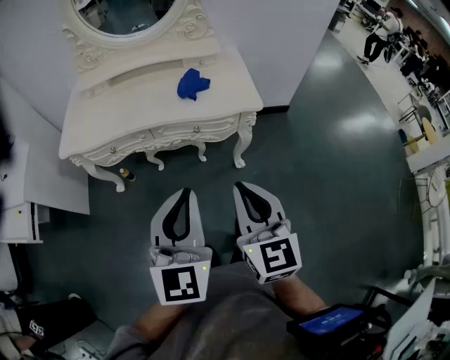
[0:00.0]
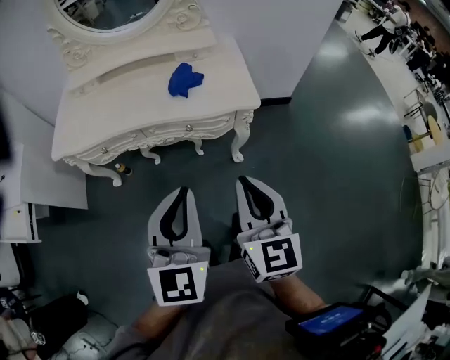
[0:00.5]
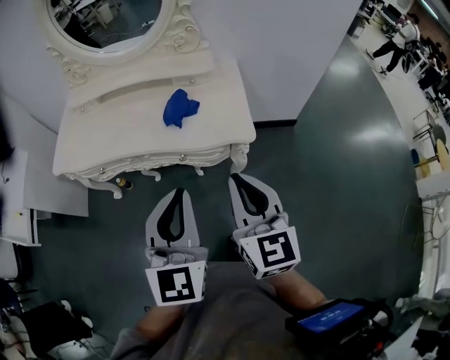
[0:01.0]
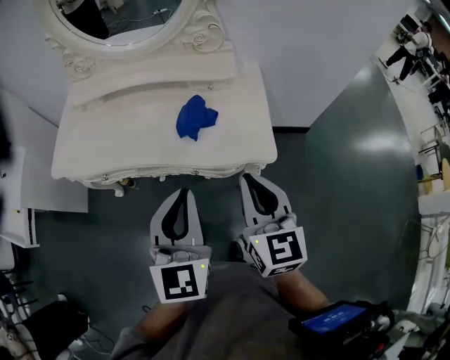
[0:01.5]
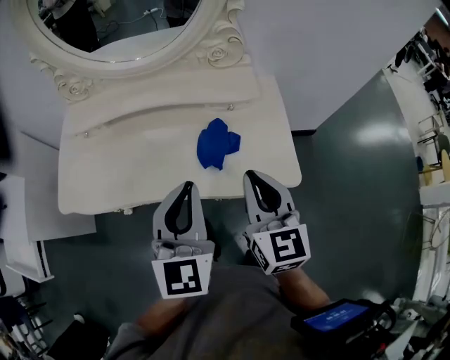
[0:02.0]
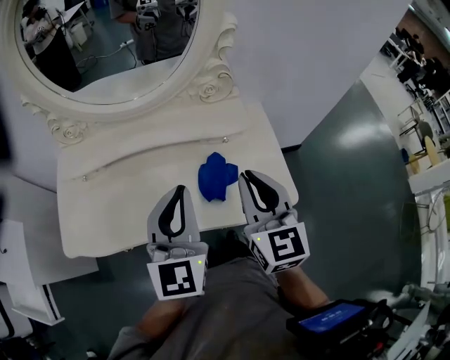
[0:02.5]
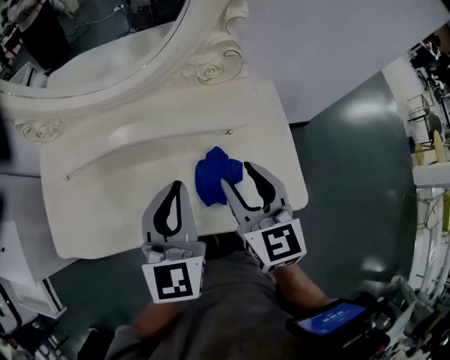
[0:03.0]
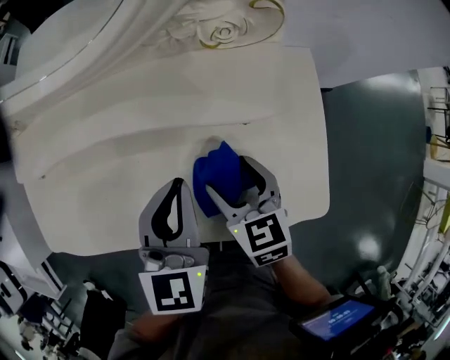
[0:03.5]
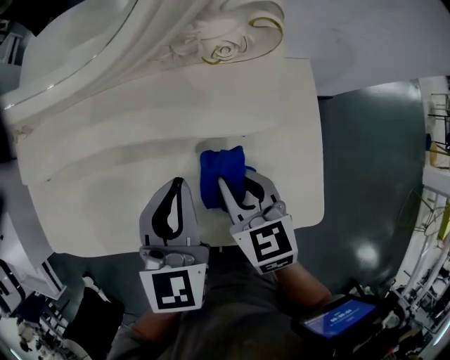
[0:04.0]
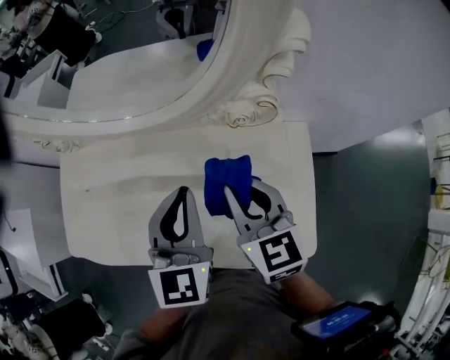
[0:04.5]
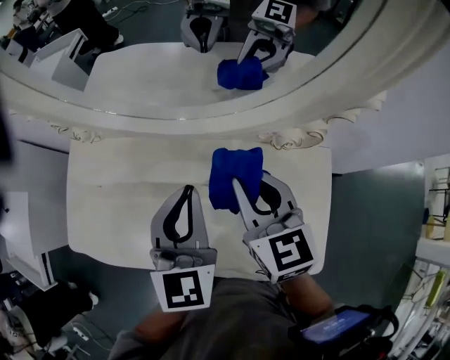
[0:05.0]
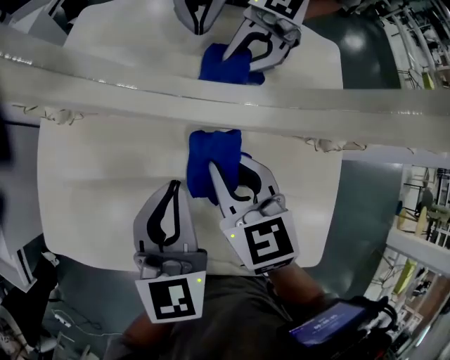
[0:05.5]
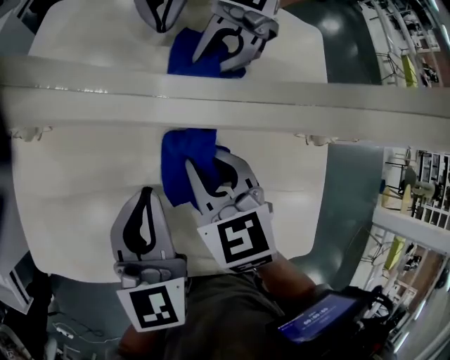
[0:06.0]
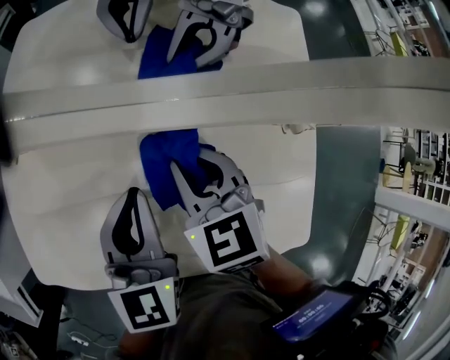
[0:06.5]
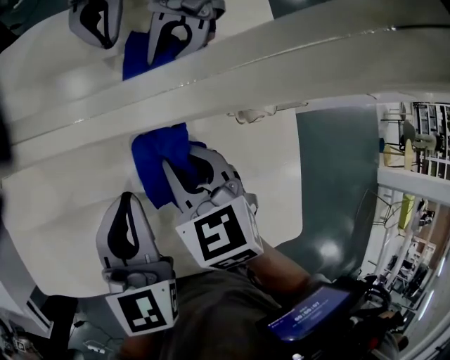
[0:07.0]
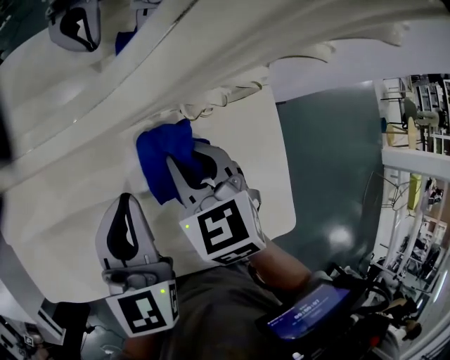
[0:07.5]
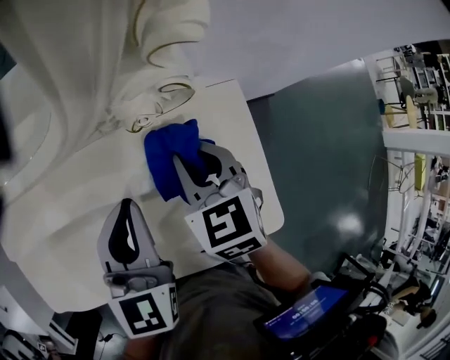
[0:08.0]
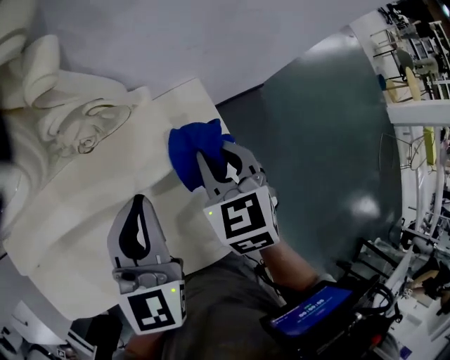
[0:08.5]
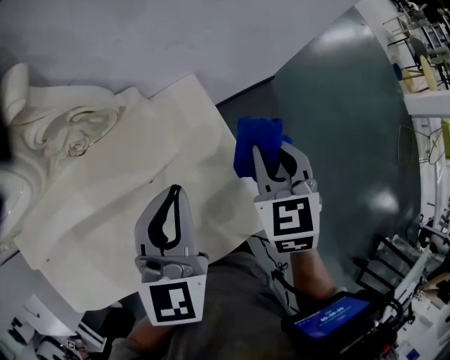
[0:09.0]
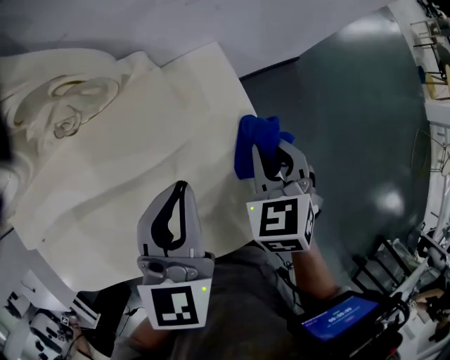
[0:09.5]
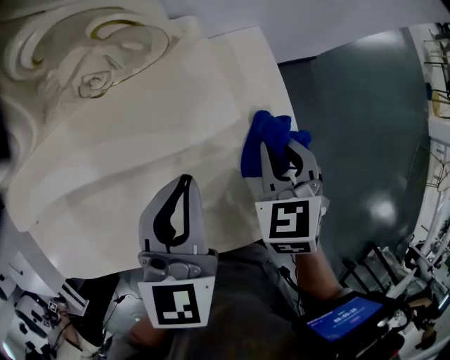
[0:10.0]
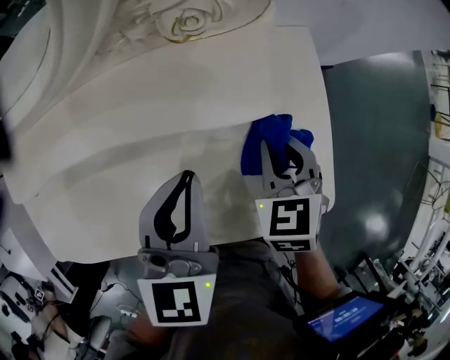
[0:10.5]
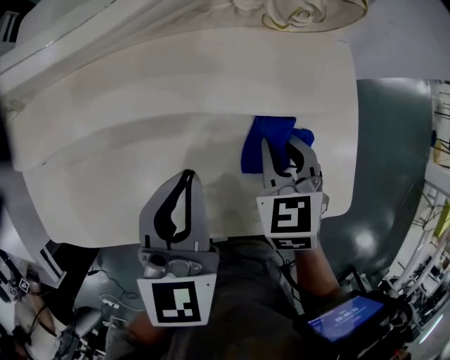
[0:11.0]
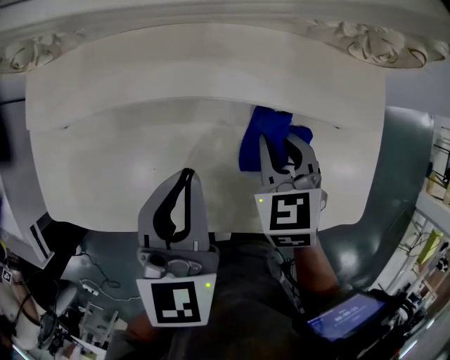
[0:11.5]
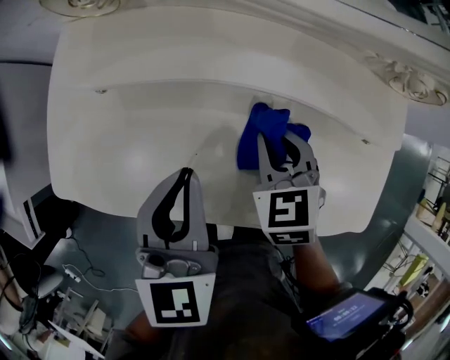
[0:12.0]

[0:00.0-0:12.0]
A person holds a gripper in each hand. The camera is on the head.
0:00.0 to 0:02.0: Both grippers travel together forward, approximately 40 cm.
0:02.0 to 0:04.0: The grippers both shift forward and downward by roughly 25 cm. The right gripper changes its angle by approximately 30 degrees, and opens and closes again.
0:04.0 to 0:06.0: The left gripper heads to the left and forward, covering approximately 20 cm, while the right gripper travels forward and to the left by approximately 25 cm, and swivels roughly 20 degrees.
0:06.0 to 0:08.0: Both grippers travel together to the right, some 25 cm. The left gripper swivels about 20 degrees; the right gripper rotates roughly 20 degrees.
0:08.0 to 0:10.0: The two grippers go roughly 15 cm to the right and downward.
0:10.0 to 0:12.0: The pair of grippers is taken some 40 cm. The right gripper swivels about 30 degrees. Meanwhile the left gripper swivels roughly 30 degrees.

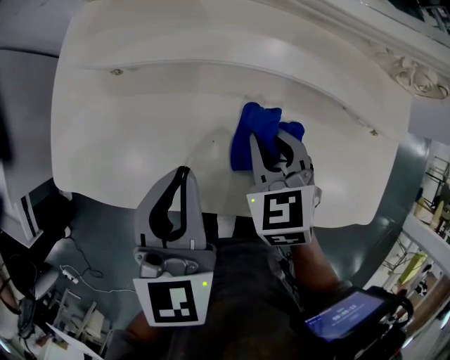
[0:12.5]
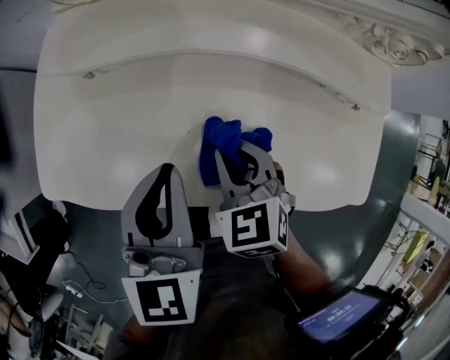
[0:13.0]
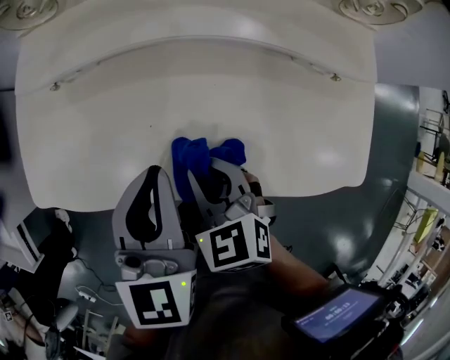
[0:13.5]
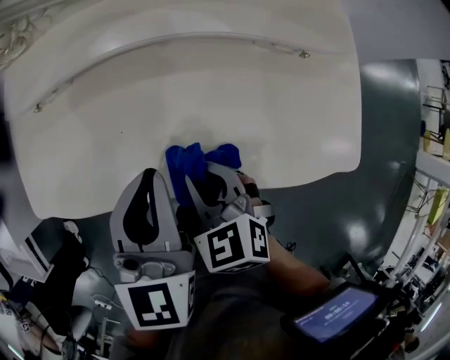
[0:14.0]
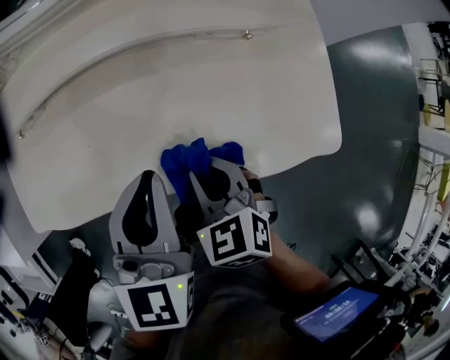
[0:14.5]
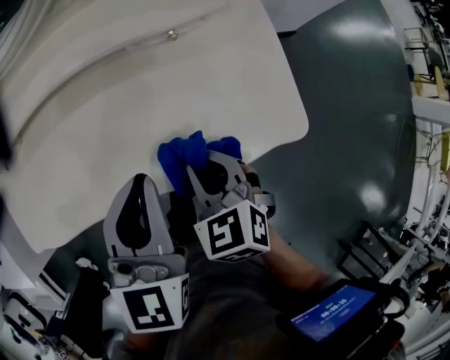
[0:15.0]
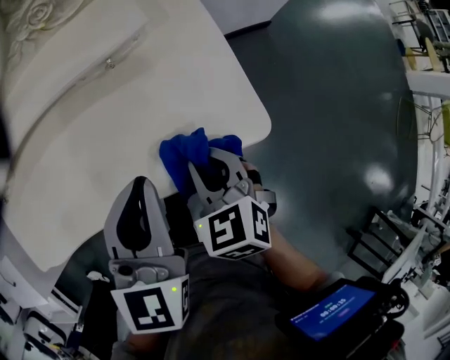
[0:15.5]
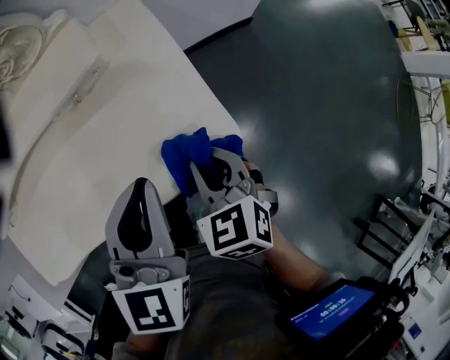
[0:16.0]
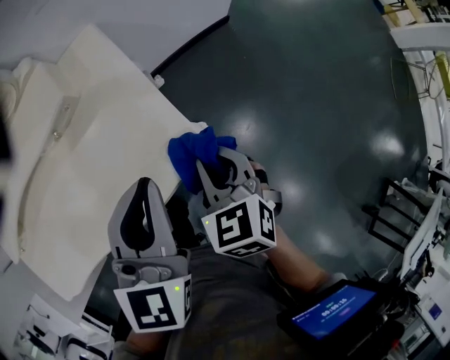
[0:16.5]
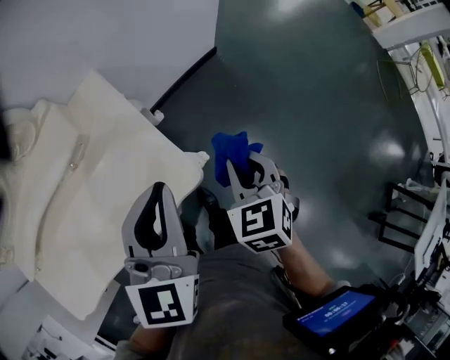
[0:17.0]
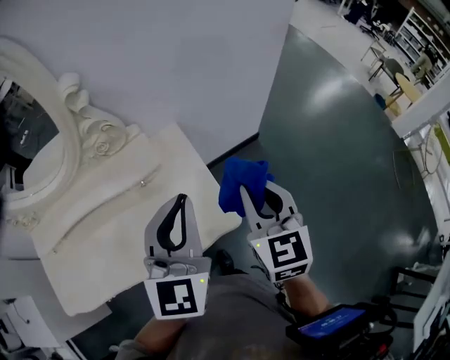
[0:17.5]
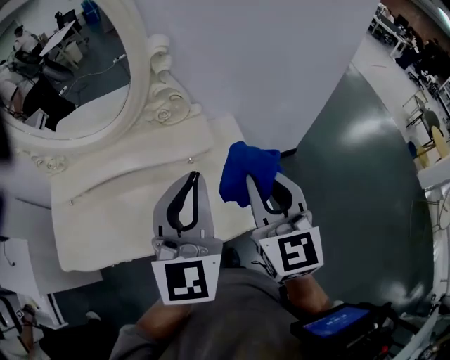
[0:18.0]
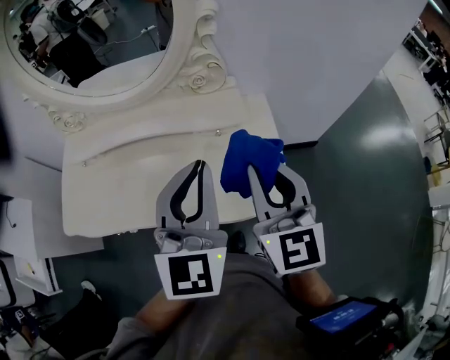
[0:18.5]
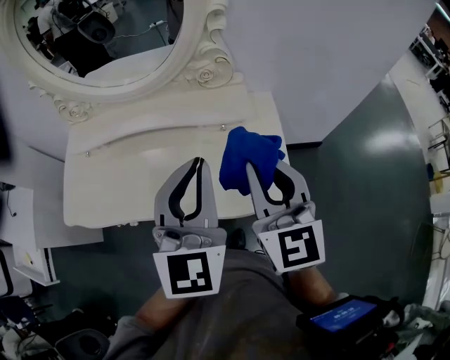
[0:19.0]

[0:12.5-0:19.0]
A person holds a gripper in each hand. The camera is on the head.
0:12.5 to 0:14.5: The left gripper goes about 20 cm to the right. The right gripper shifts approximately 20 cm backward and to the right.
0:14.5 to 0:17.0: The right gripper ends up some 50 cm from where it was, and swivels some 40 degrees; the left gripper moves approximately 40 cm, and rotates roughly 30 degrees.
0:17.0 to 0:19.0: The left gripper changes place by some 30 cm, and changes its angle by some 40 degrees. The right gripper shifts by approximately 35 cm, and tilts its fingers approximately 40 degrees upward.

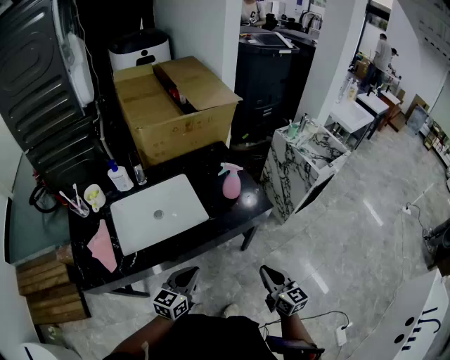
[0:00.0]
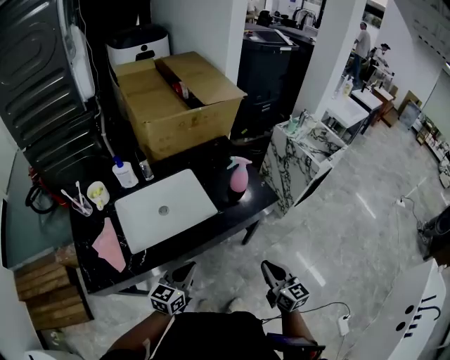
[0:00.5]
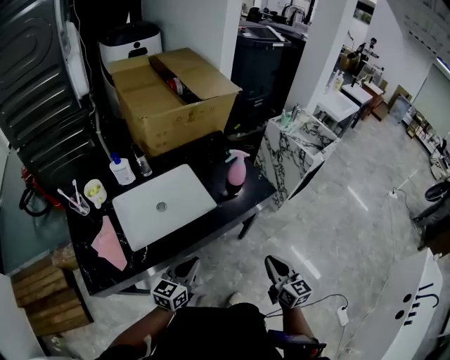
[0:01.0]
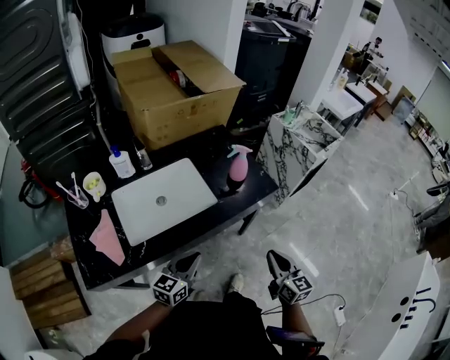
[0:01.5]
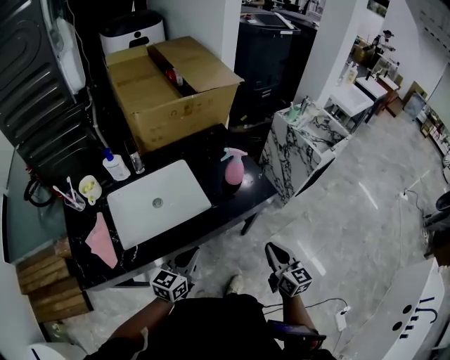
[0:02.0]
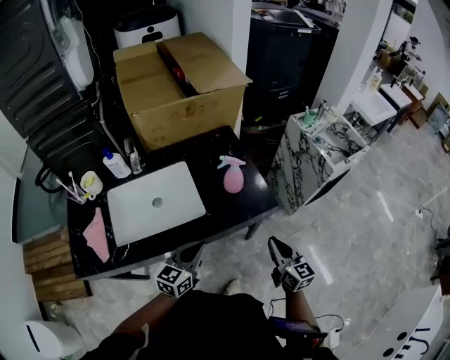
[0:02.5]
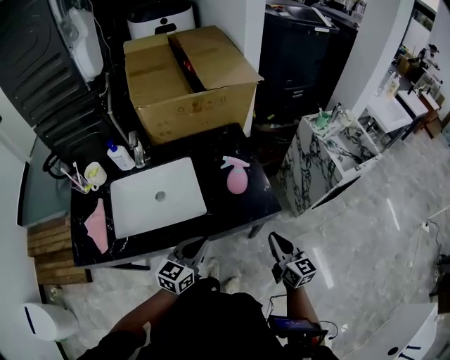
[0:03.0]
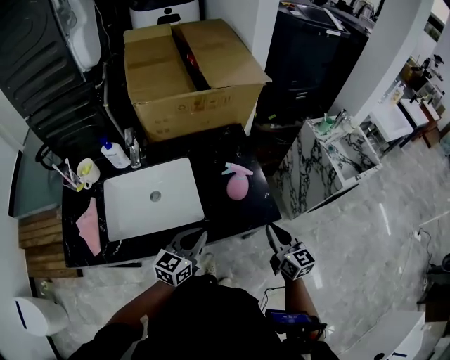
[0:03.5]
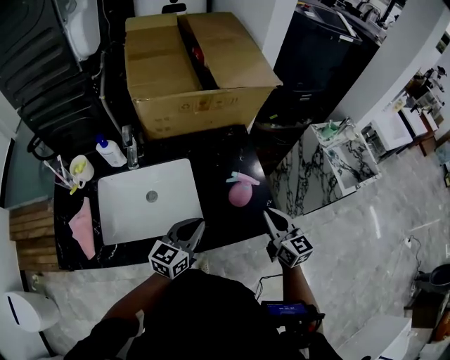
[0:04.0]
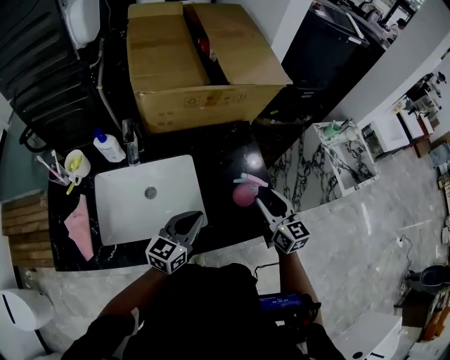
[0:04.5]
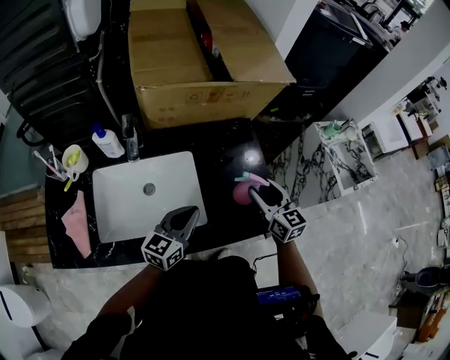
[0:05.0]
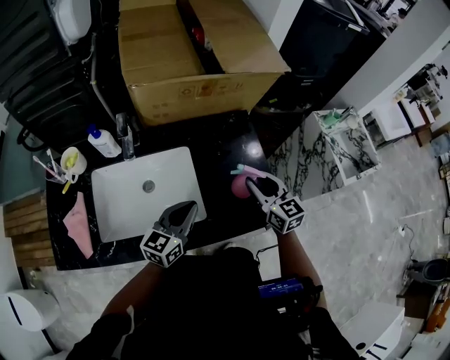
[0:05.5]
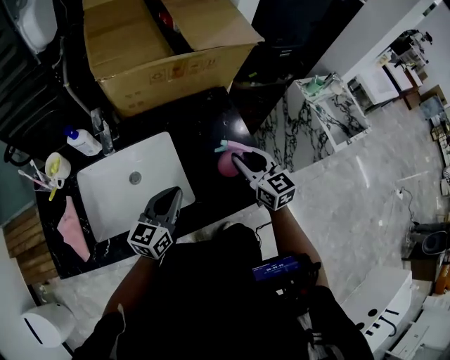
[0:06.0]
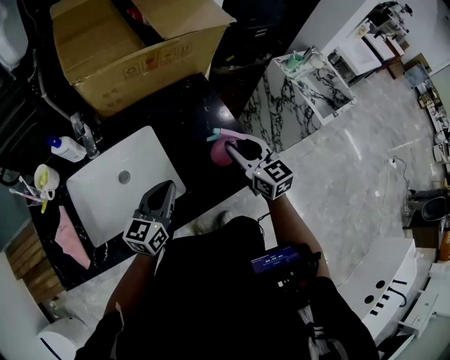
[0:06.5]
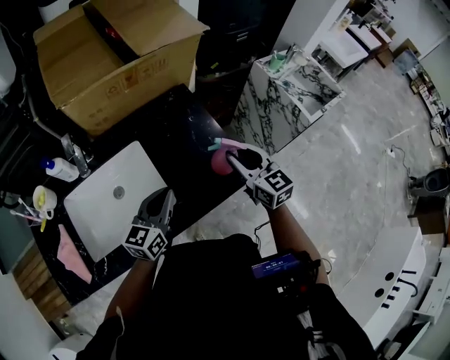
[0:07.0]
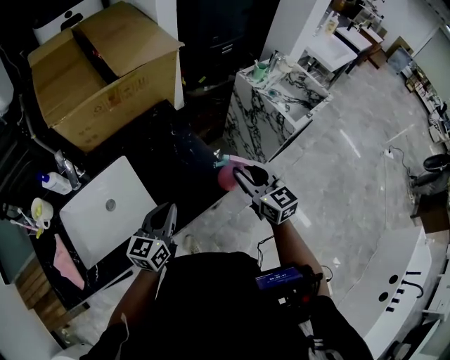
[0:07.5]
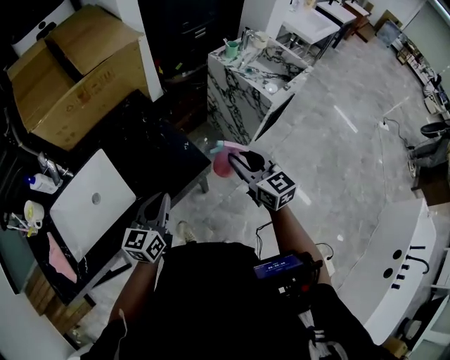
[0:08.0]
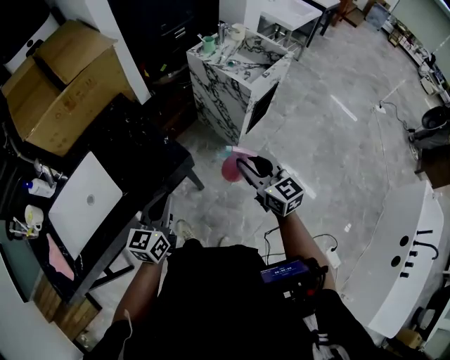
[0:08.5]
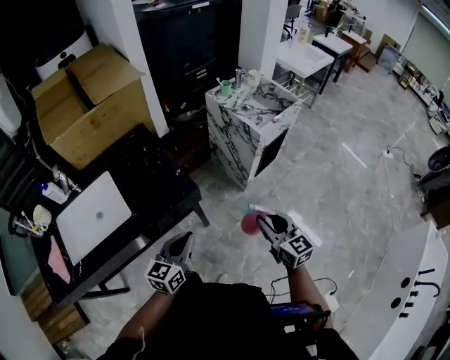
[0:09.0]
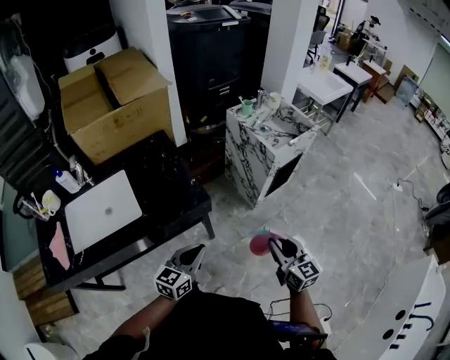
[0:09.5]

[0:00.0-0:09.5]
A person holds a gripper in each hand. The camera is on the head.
0:00.0 to 0:02.0: The left gripper changes place by approximately 5 cm. Meanwhile the right gripper moves approximately 5 cm.
0:02.0 to 0:04.0: Both grippers move forward, approximately 20 cm. The right gripper turns by about 20 degrees.
0:04.0 to 0:05.5: The right gripper travels forward and to the left by about 10 cm, and opens up, while the left gripper changes place by roughly 5 cm.
0:05.5 to 0:07.5: The left gripper heads to the right, covering some 10 cm. The right gripper shifts about 20 cm to the right and backward.
0:07.5 to 0:09.5: The two grippers go roughly 30 cm to the right and backward.
